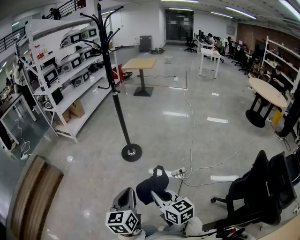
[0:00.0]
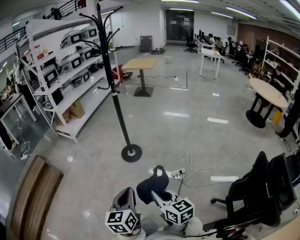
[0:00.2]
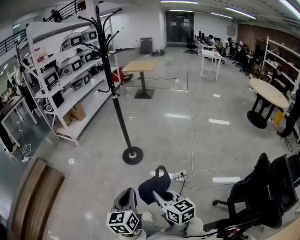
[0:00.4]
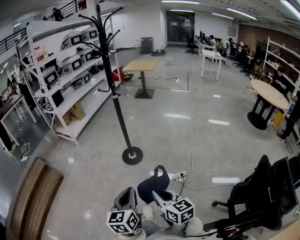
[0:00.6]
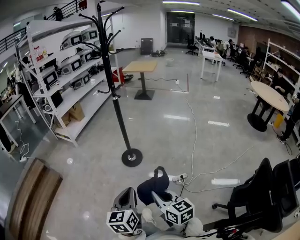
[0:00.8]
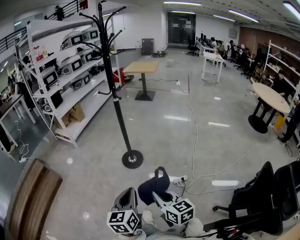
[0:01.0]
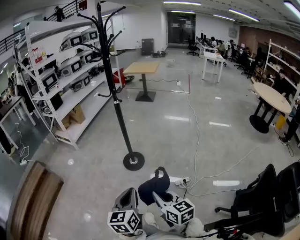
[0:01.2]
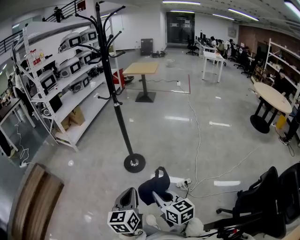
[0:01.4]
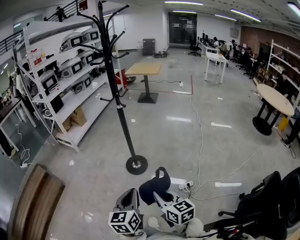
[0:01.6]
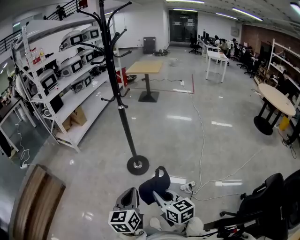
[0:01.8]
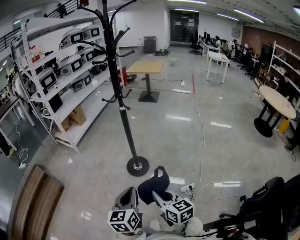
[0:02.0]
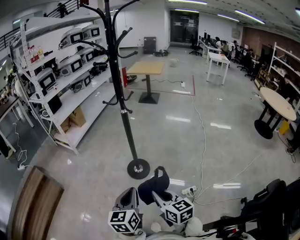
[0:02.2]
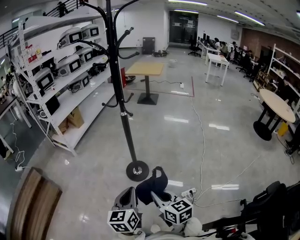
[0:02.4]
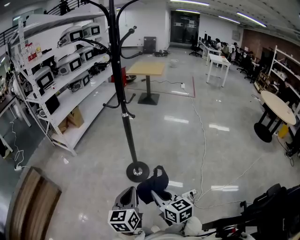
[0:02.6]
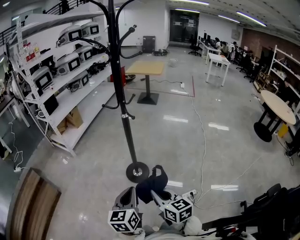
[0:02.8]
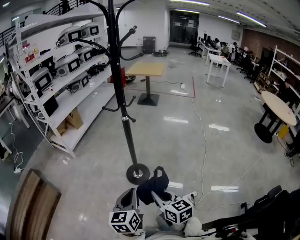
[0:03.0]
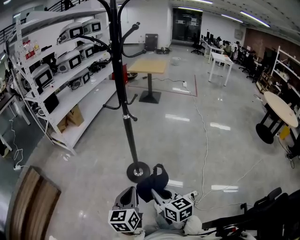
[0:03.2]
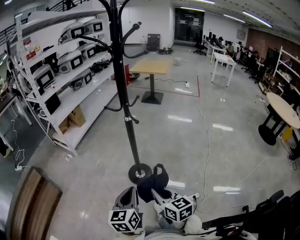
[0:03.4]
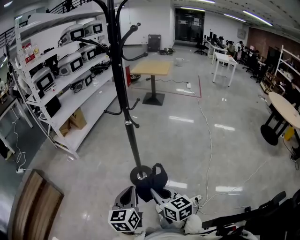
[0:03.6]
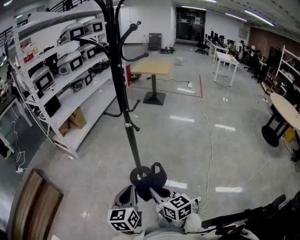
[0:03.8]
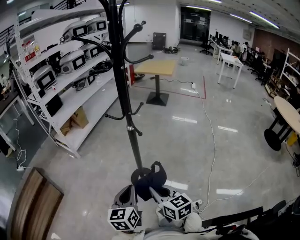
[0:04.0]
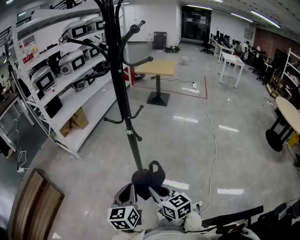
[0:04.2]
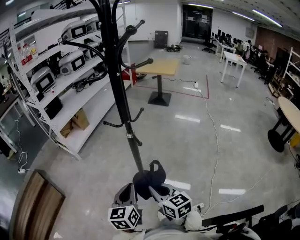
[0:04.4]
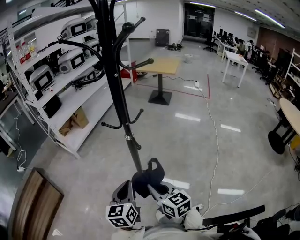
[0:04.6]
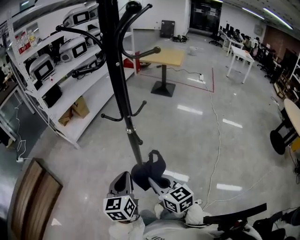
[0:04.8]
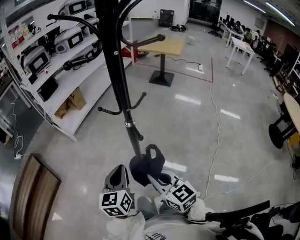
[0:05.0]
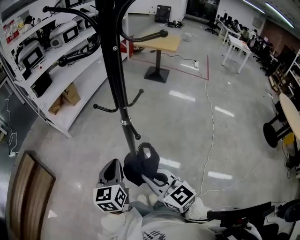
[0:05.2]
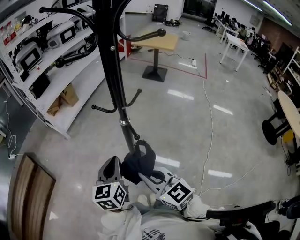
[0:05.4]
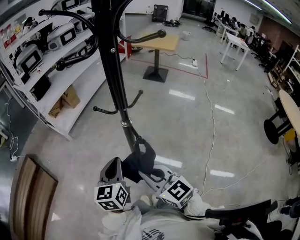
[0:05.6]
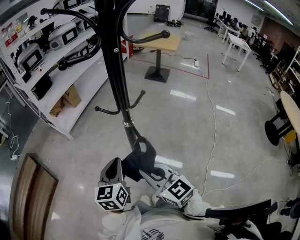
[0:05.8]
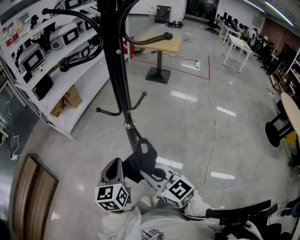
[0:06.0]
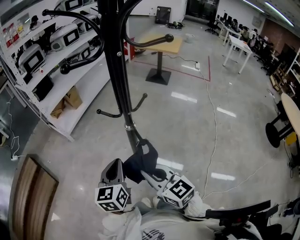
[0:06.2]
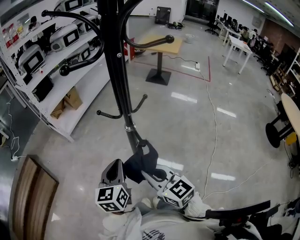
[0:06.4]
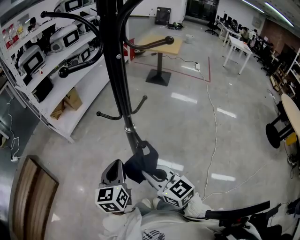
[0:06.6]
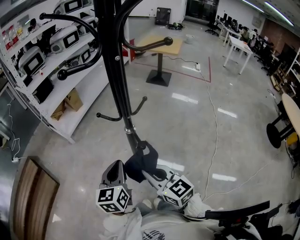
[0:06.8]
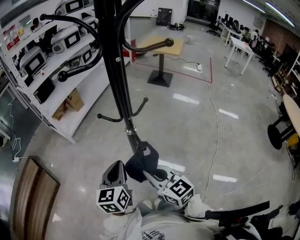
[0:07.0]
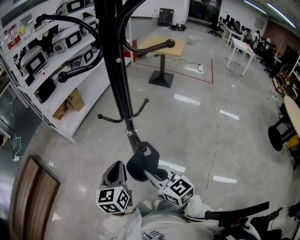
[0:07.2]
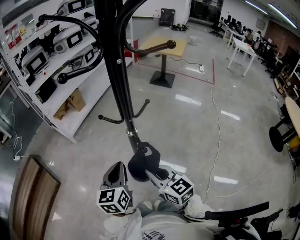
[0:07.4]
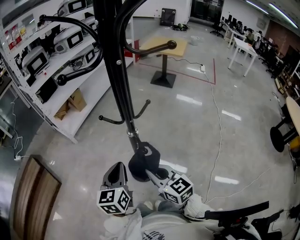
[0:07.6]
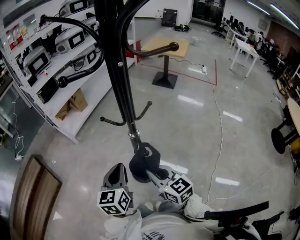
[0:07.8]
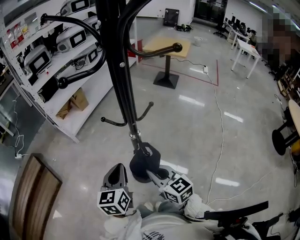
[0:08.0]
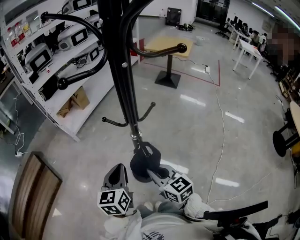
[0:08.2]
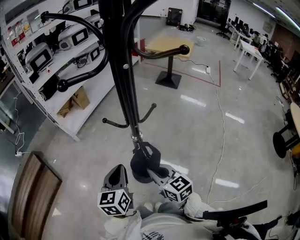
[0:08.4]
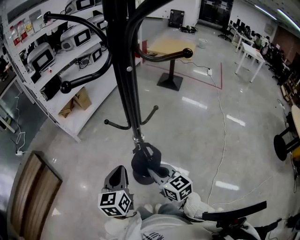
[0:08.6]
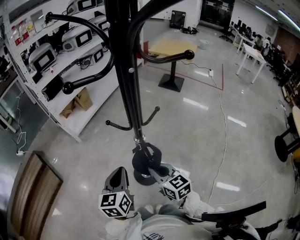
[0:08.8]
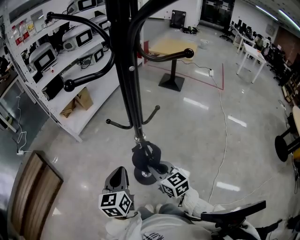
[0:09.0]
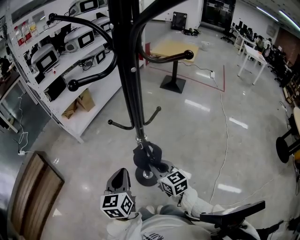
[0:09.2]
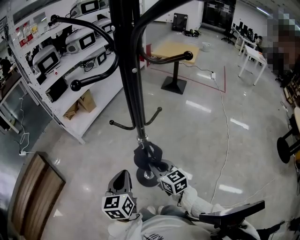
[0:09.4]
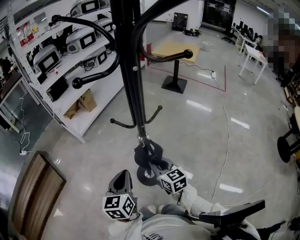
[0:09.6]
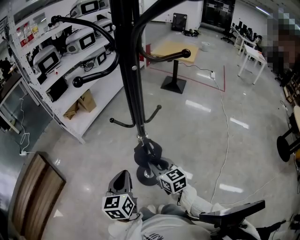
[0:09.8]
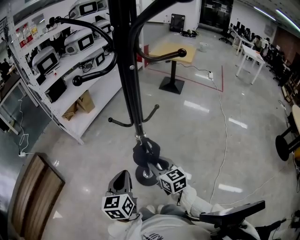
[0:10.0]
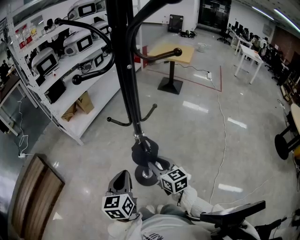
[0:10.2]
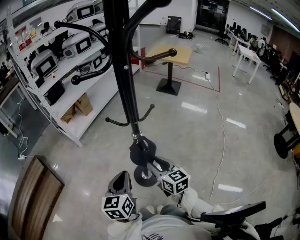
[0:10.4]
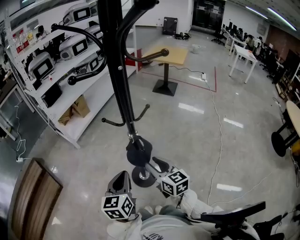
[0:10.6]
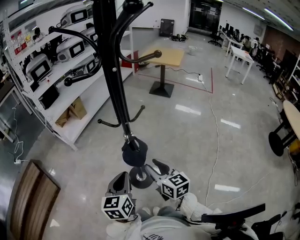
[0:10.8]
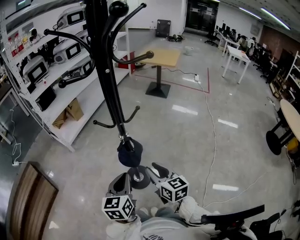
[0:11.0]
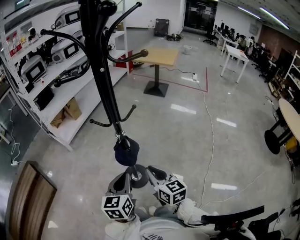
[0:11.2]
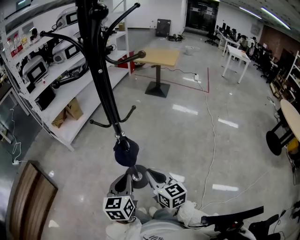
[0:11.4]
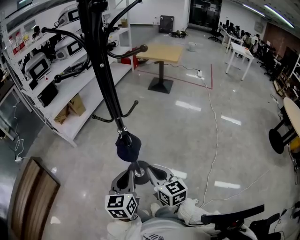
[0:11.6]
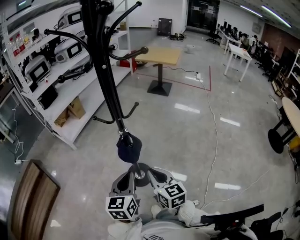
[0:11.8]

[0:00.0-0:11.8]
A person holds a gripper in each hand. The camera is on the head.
0:00.0 to 0:01.4: Both grippers move forward, about 15 cm.
0:01.4 to 0:03.0: The two grippers go approximately 20 cm forward.
0:03.0 to 0:04.4: Both grippers move forward, some 15 cm.
0:04.4 to 0:06.0: Both grippers move forward, some 10 cm.
0:06.0 to 0:07.4: The right gripper changes place by roughly 5 cm.
0:07.4 to 0:08.8: The right gripper travels forward by approximately 5 cm.
0:08.8 to 0:10.4: The right gripper opens. The left gripper ends up some 5 cm from where it was.
0:10.4 to 0:11.8: The left gripper goes about 5 cm to the right. The right gripper heads backward, covering about 10 cm, and closes.

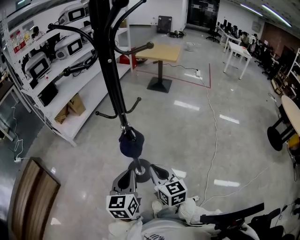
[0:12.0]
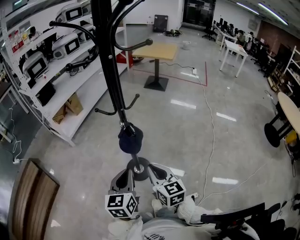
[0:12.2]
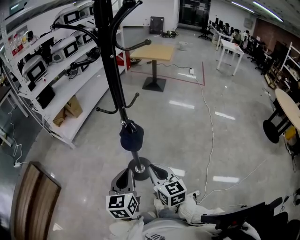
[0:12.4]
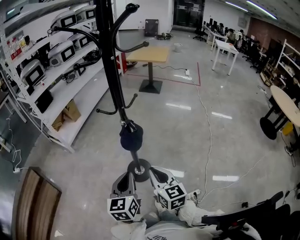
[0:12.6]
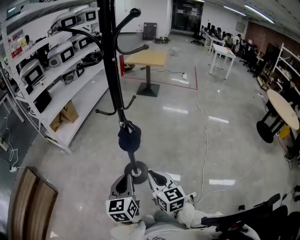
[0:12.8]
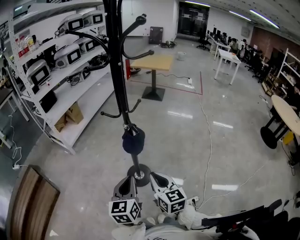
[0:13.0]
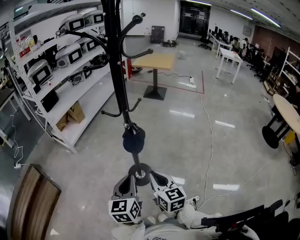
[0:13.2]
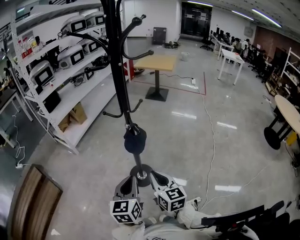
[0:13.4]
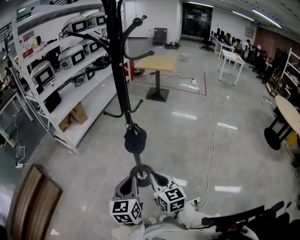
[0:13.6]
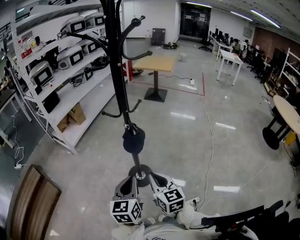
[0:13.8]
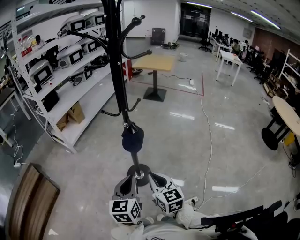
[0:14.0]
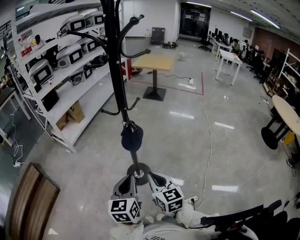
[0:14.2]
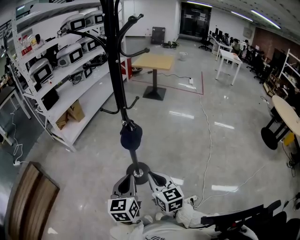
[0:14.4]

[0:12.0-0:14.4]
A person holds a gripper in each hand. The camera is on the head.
0:12.0 to 0:13.2: The grippers both shift backward by about 5 cm.
0:13.2 to 0:14.4: The grippers stay close to where they were, moving slightly.

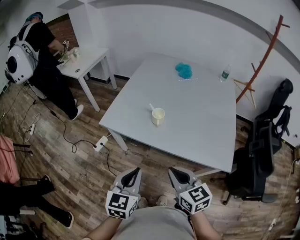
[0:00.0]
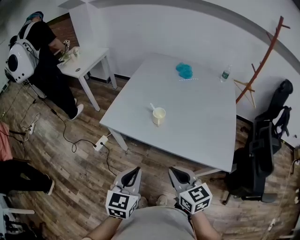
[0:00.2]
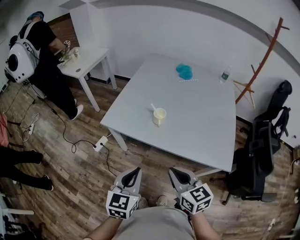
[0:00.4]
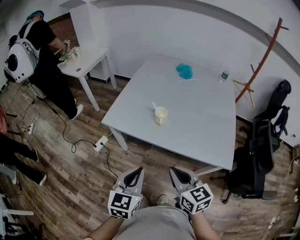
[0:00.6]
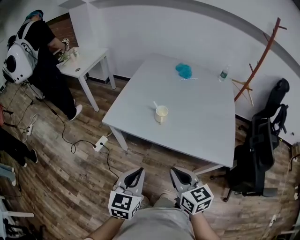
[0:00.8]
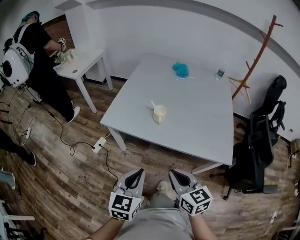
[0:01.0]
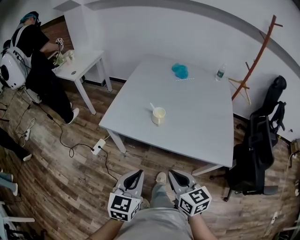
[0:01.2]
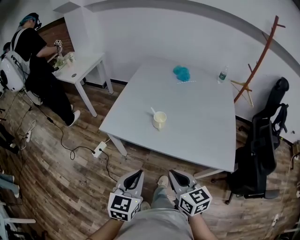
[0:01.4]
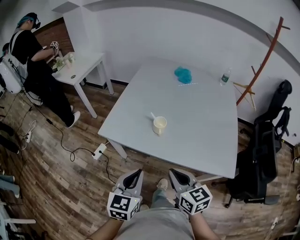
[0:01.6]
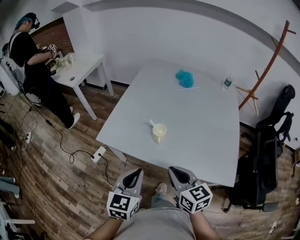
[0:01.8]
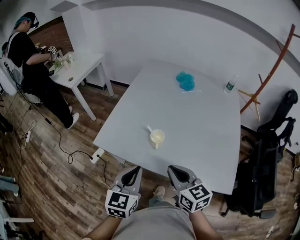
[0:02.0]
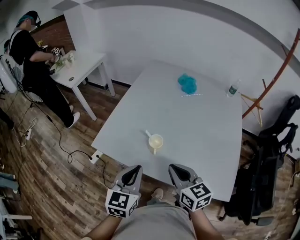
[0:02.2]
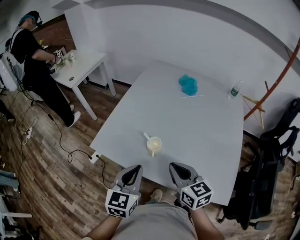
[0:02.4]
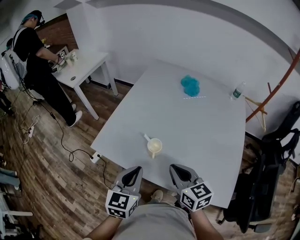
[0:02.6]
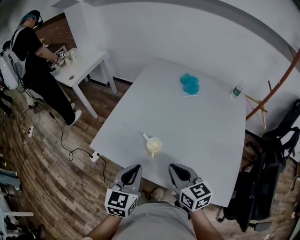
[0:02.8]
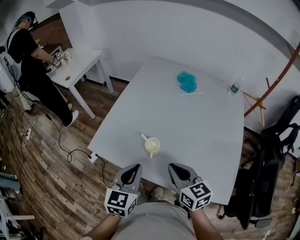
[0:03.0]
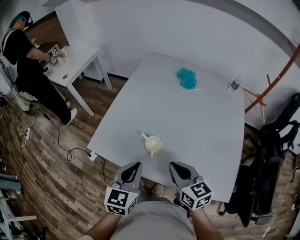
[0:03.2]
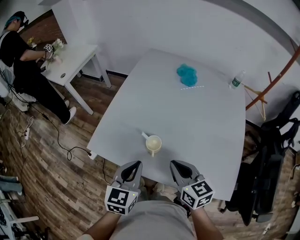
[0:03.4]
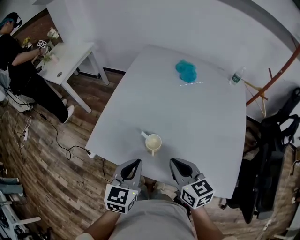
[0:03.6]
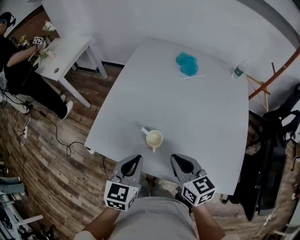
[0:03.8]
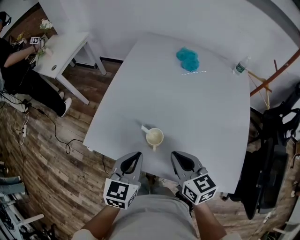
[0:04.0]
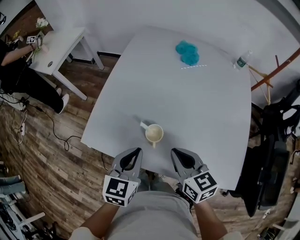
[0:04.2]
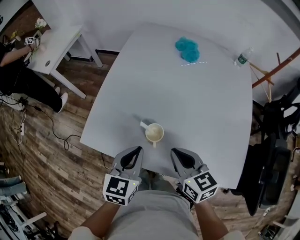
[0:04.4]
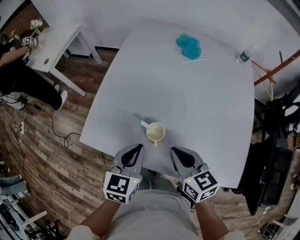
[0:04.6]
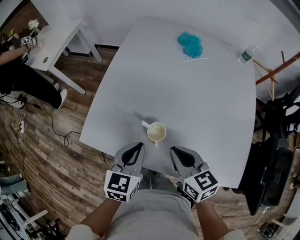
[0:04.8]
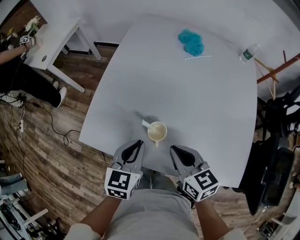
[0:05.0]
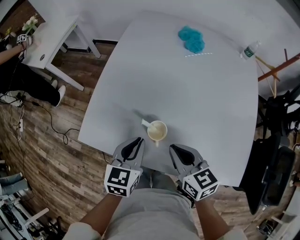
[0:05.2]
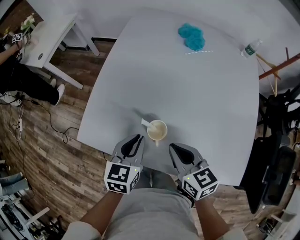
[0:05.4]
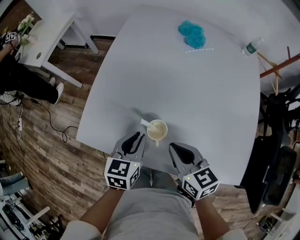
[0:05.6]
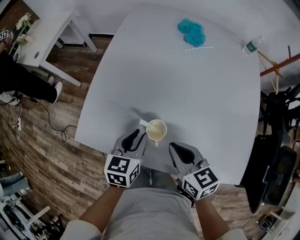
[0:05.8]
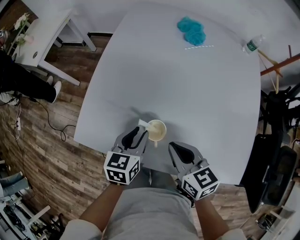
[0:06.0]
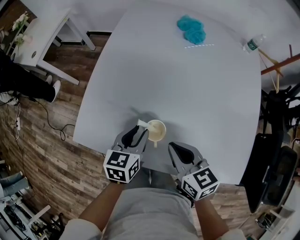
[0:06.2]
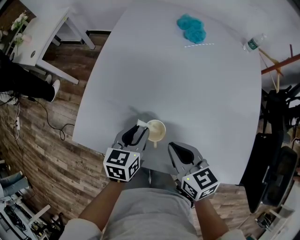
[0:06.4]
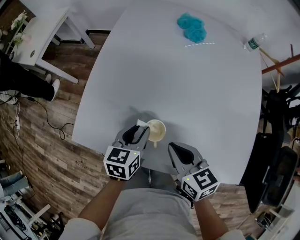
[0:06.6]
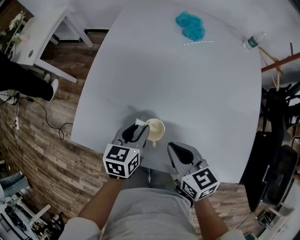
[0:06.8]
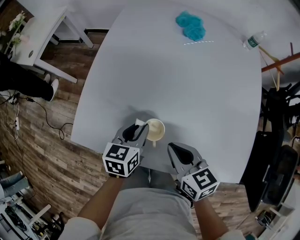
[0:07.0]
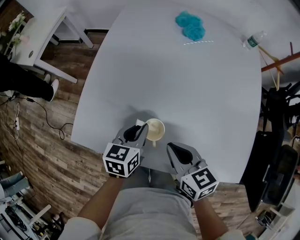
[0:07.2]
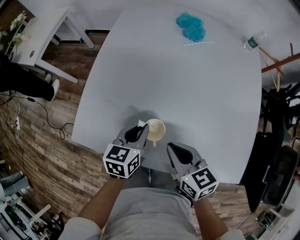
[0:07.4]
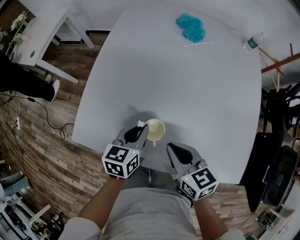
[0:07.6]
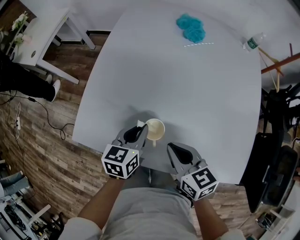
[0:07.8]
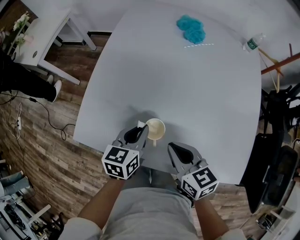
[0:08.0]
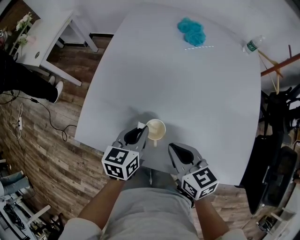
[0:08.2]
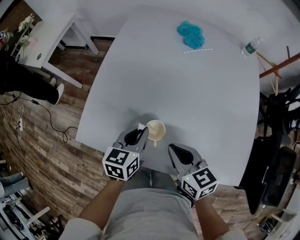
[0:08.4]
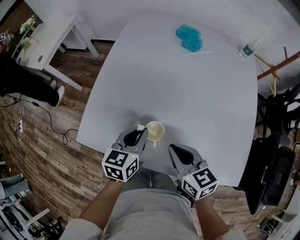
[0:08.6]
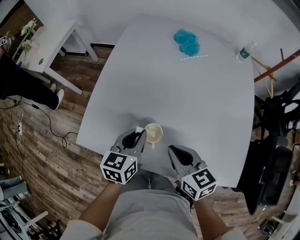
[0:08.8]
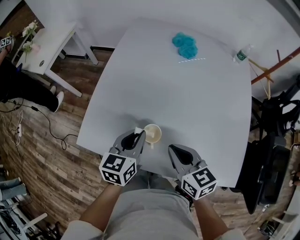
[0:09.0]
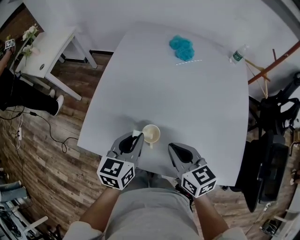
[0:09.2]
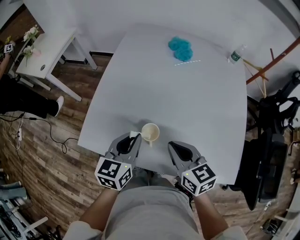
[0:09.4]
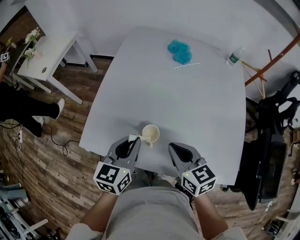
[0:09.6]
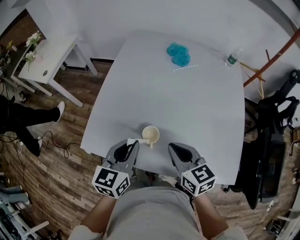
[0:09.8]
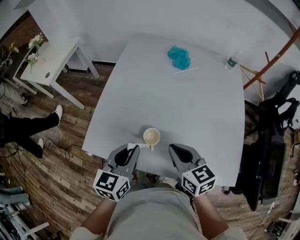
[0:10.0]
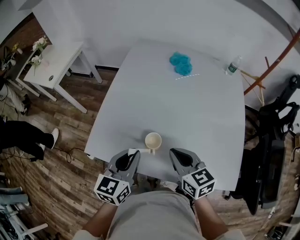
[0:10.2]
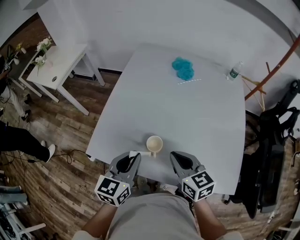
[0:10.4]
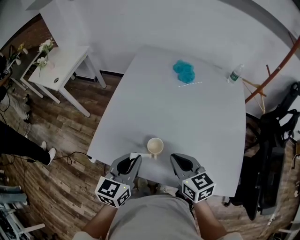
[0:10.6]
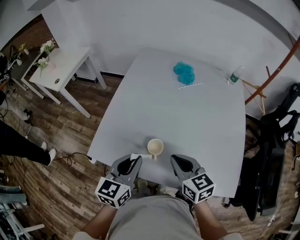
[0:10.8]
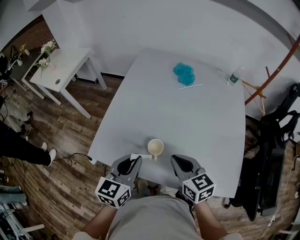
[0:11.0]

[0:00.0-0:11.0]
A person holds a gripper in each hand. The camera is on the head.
0:00.0 to 0:01.6: Both grippers move forward, about 5 cm.
0:01.6 to 0:03.2: The left gripper shifts approximately 20 cm forward. Meanwhile the right gripper goes approximately 20 cm forward and to the right.
0:03.2 to 0:04.8: The right gripper travels forward by about 5 cm; the left gripper moves forward and downward, approximately 10 cm.
0:04.8 to 0:06.2: The left gripper goes some 10 cm downward and forward, and opens up.
0:06.2 to 0:07.8: The left gripper closes its fingers.
0:07.8 to 0:09.4: The left gripper is displaced upward by some 10 cm. The right gripper moves upward, some 5 cm.
0:09.4 to 0:11.0: The left gripper heads backward, covering about 5 cm.
